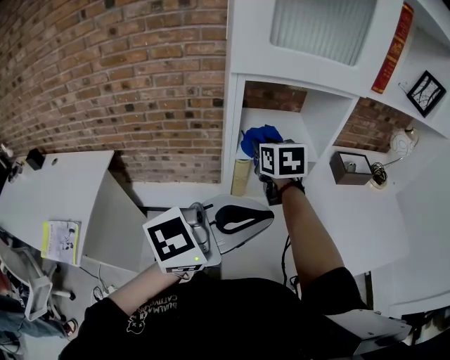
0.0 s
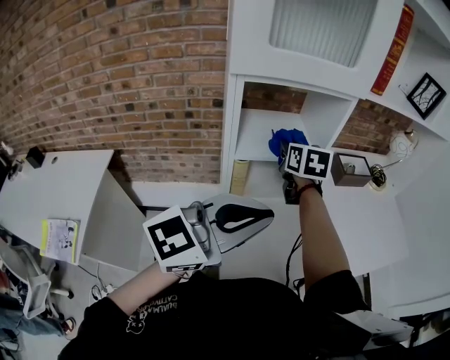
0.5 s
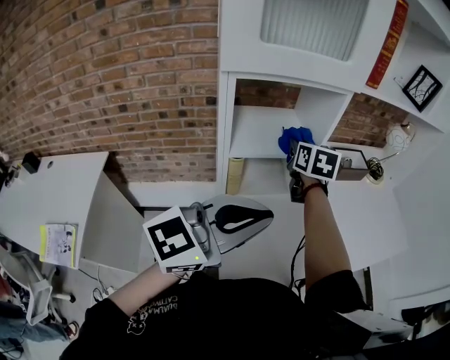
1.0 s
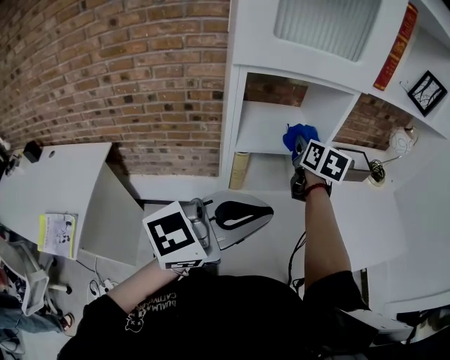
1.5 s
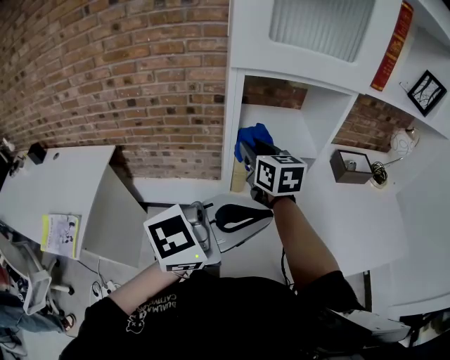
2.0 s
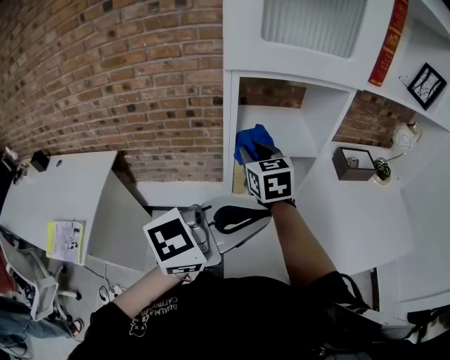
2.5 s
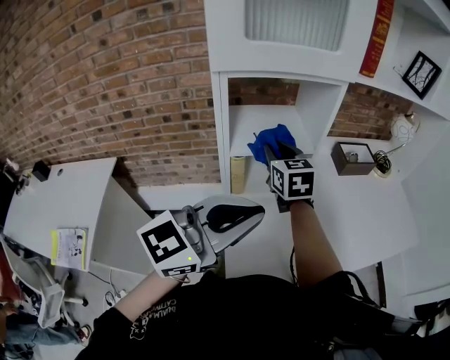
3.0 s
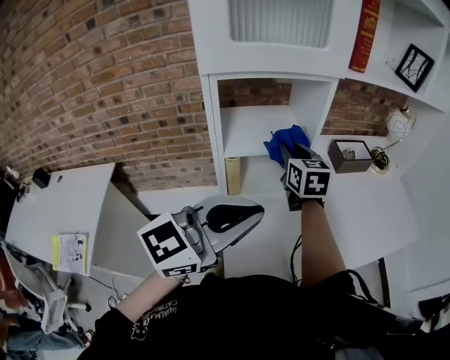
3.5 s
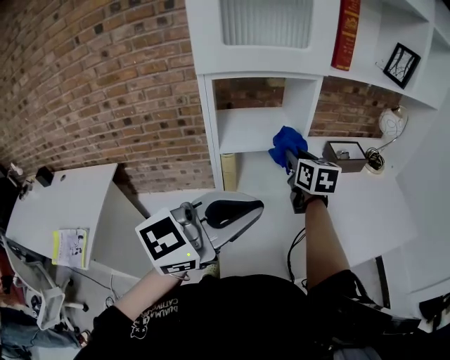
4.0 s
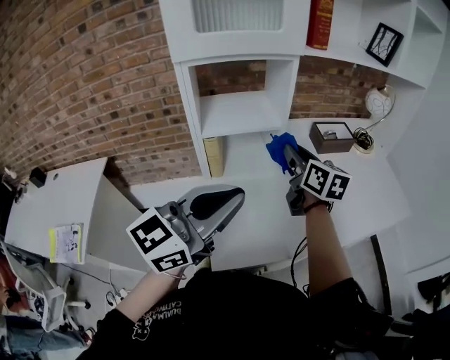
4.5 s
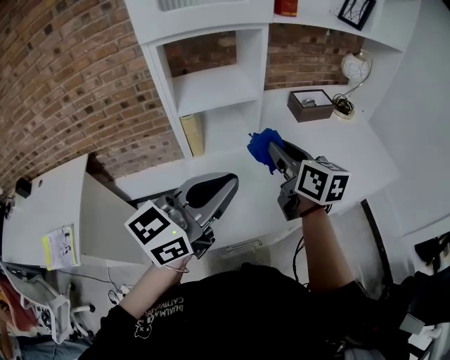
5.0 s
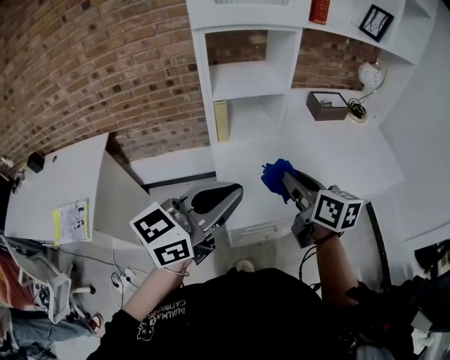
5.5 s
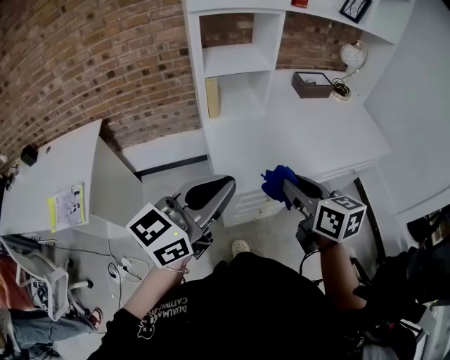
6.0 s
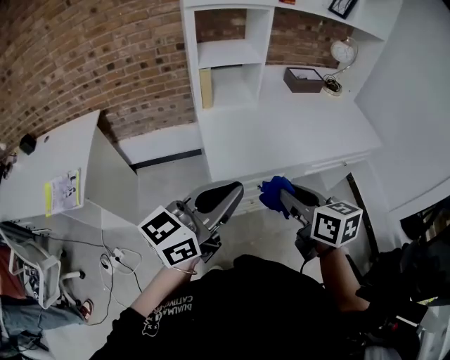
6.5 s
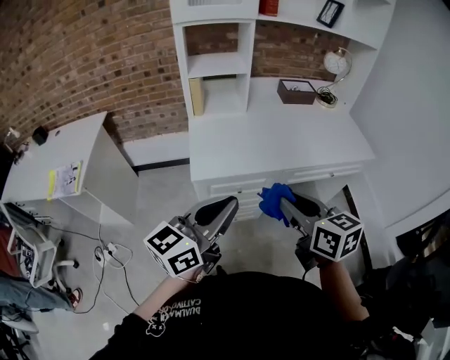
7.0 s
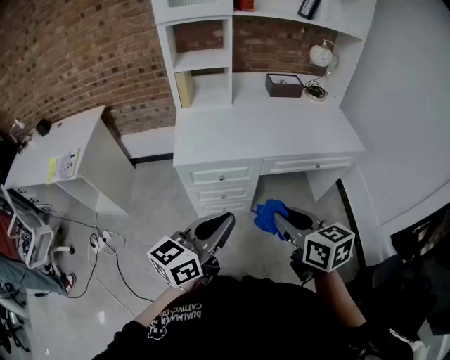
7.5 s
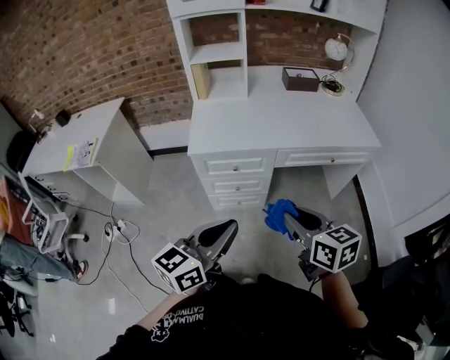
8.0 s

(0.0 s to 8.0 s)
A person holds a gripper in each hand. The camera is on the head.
0.0 s - 2.0 s: The right gripper moves roughly 10 cm to the right and comes back.
2.0 s - 4.0 s: The right gripper travels to the right by approximately 20 cm.
4.0 s - 6.0 s: The right gripper heads backward, covering approximately 40 cm. Meanwhile the left gripper travels backward by approximately 20 cm, and rotates about 20 degrees.
6.0 s - 8.0 s: The left gripper moves to the right, backward and downward, about 40 cm. The right gripper travels to the right and backward by some 35 cm.

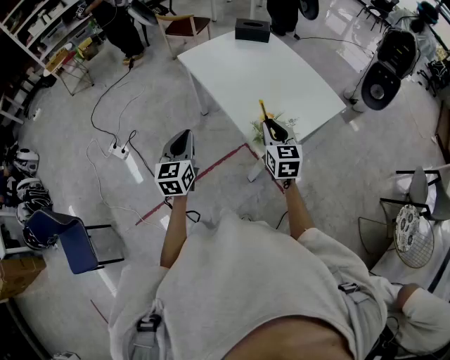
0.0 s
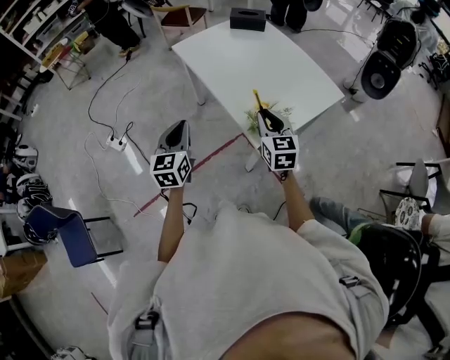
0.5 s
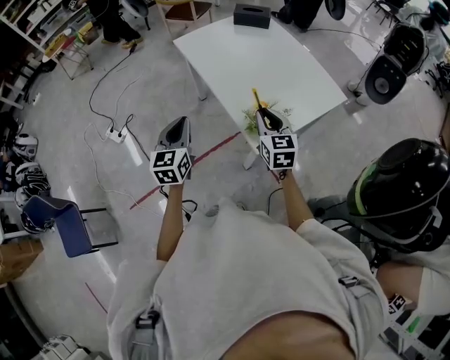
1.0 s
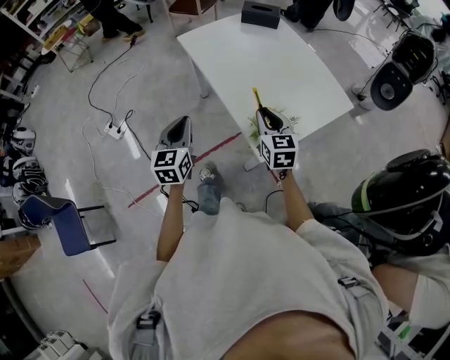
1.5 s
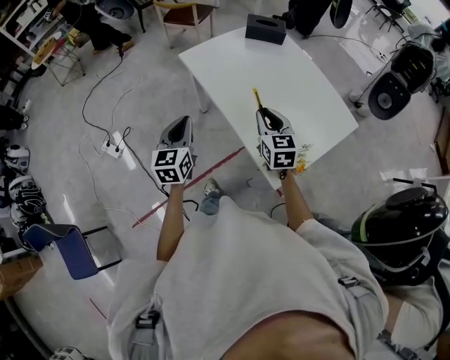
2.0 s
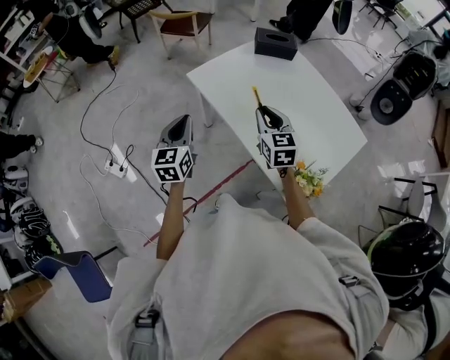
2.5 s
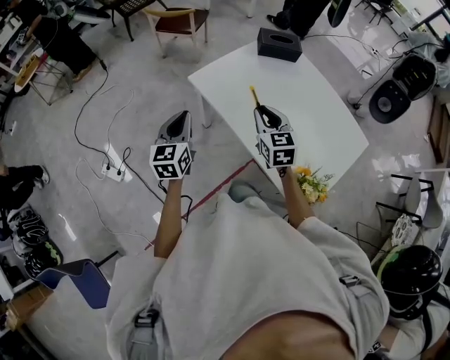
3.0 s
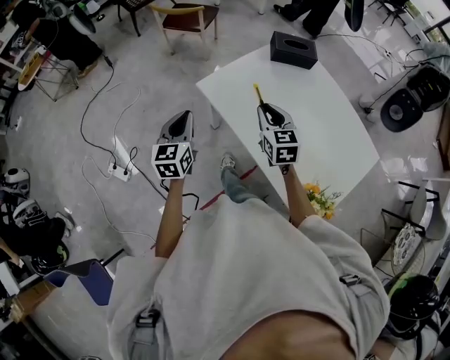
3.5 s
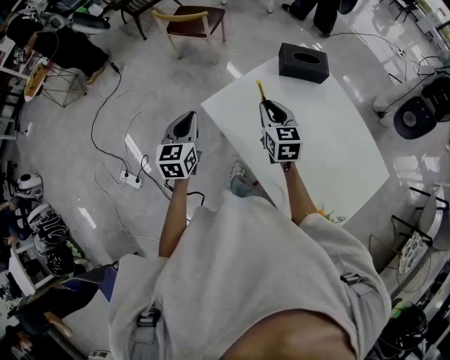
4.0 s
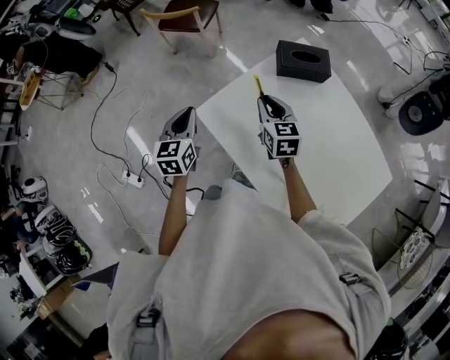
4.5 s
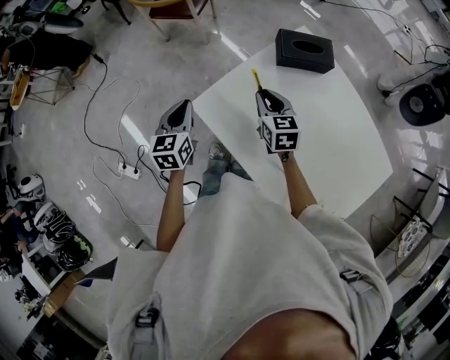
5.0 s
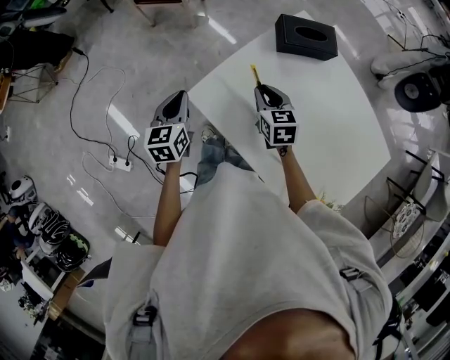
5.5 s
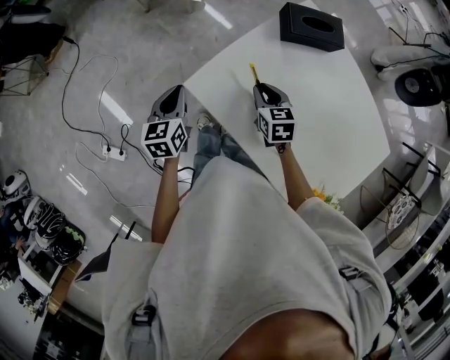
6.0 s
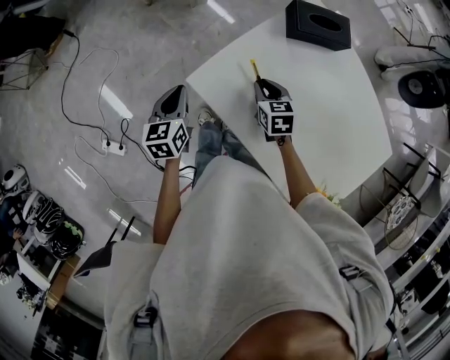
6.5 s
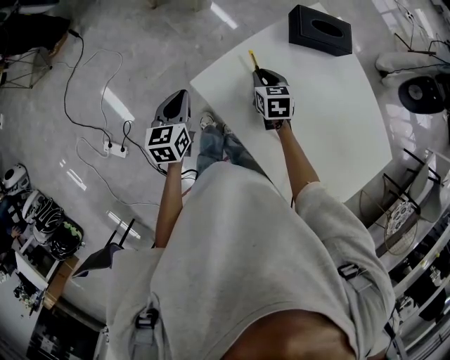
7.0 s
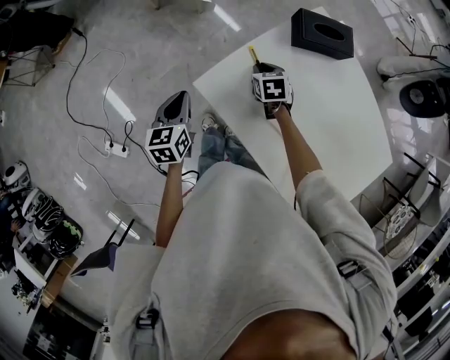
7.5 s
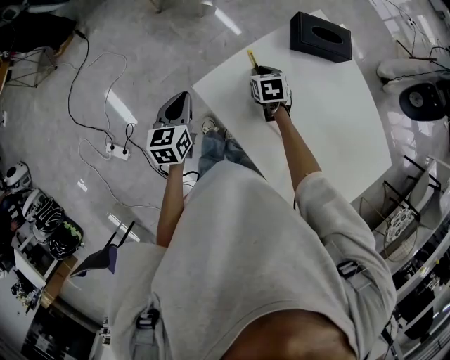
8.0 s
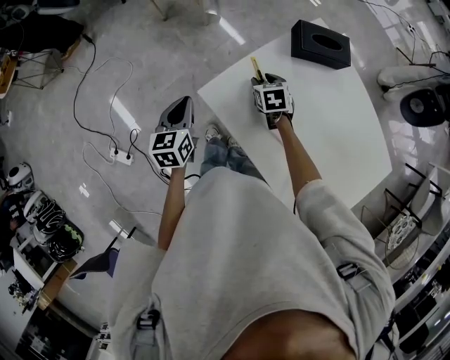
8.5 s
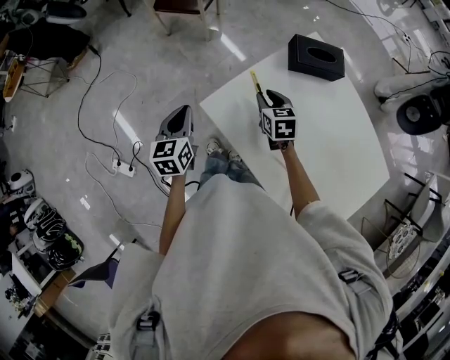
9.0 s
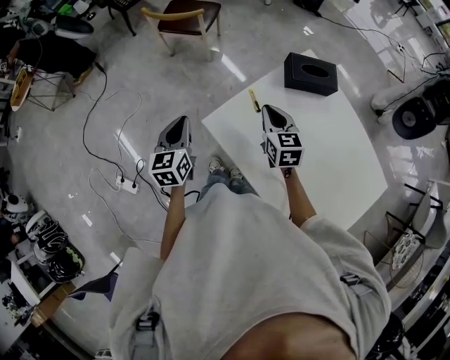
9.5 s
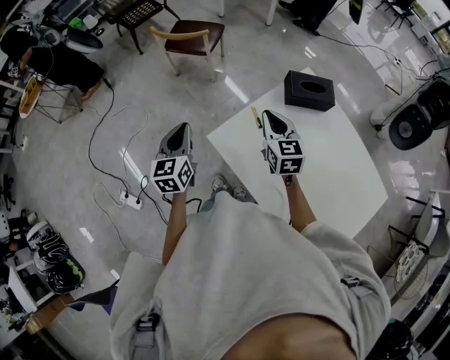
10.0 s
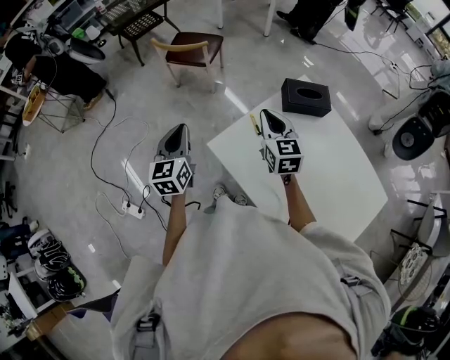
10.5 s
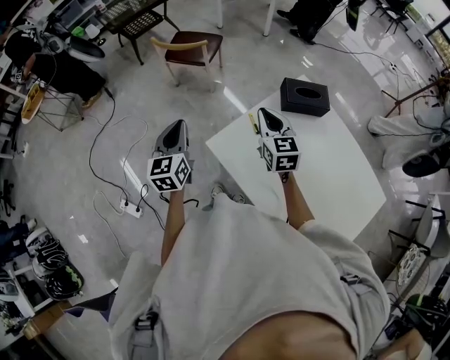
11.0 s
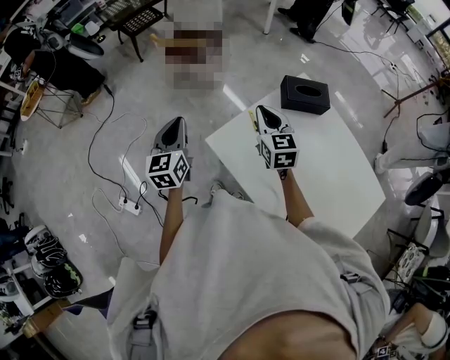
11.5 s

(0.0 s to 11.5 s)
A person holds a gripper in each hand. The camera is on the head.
0.0 s - 2.0 s: Both grippers travel together forward, roughly 15 cm.
2.0 s - 4.0 s: Both grippers travel together forward, roughly 30 cm.
4.0 s - 6.0 s: The left gripper is displaced downward and forward by about 10 cm; the right gripper is displaced downward by about 15 cm, and turns by roughly 20 degrees.
6.0 s - 7.5 s: The right gripper is displaced forward and downward by approximately 10 cm.
7.5 s - 9.5 s: The right gripper travels upward by roughly 15 cm, changes its angle by some 30 degrees, and opens, then closes once more; the left gripper is displaced upward by approximately 5 cm.
9.5 s - 11.5 s: Both grippers move upward, approximately 10 cm.

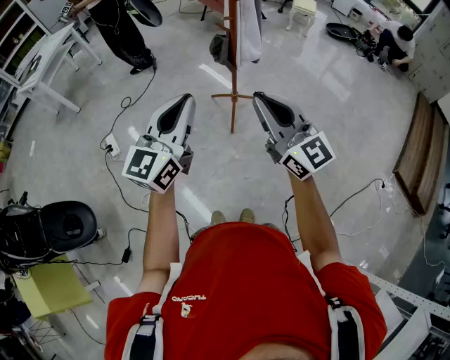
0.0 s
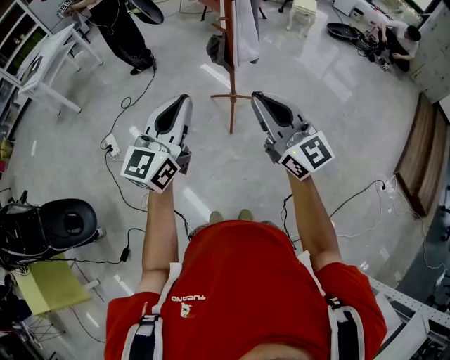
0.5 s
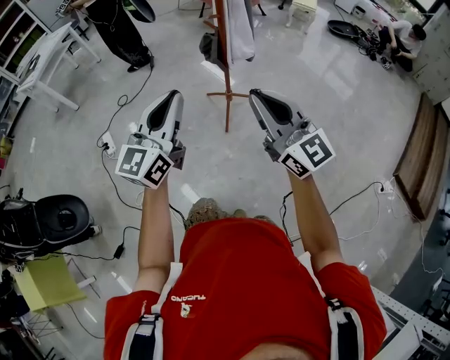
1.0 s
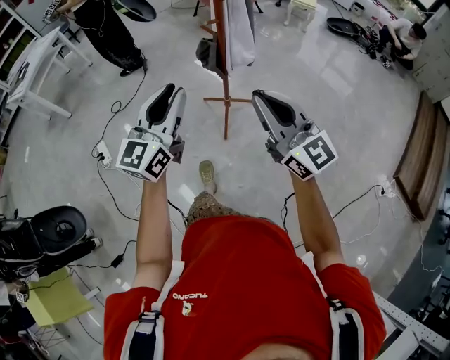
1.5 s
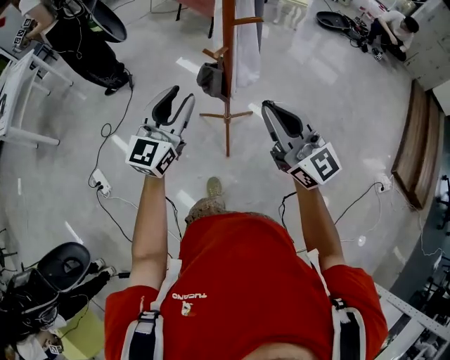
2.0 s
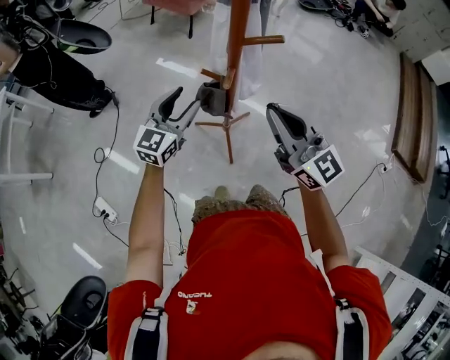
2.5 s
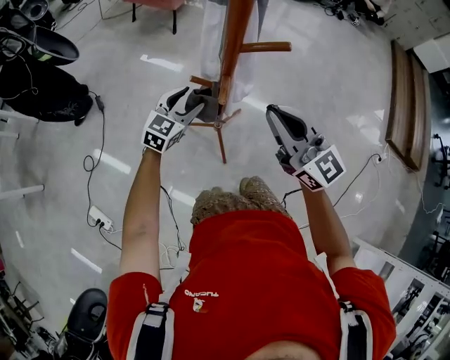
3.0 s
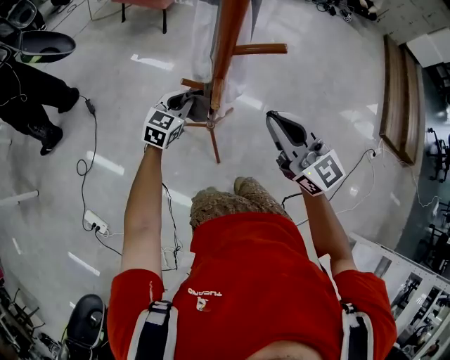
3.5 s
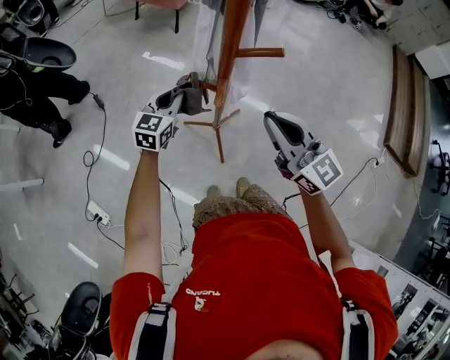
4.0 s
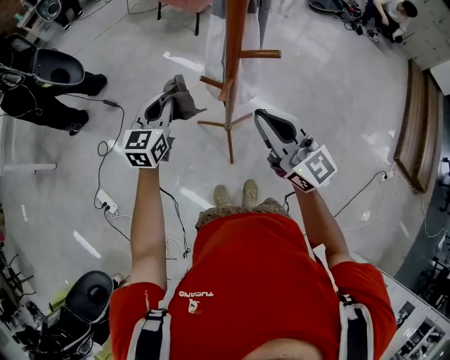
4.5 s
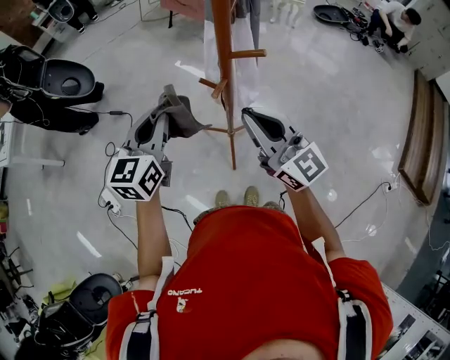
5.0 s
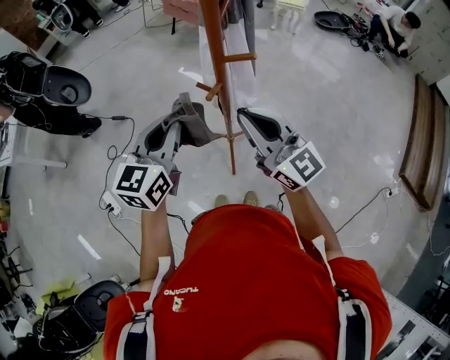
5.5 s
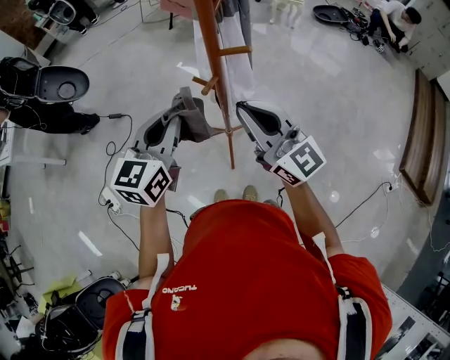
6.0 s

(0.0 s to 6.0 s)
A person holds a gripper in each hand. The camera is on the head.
0.0 s - 2.0 s: The grippers both shift forward by approximately 30 cm. The left gripper opens its fingers.
2.0 s - 4.0 s: The left gripper shifts roughly 30 cm forward and downward, turns by roughly 20 degrees, and closes. Meanwhile the right gripper travels forward and downward by approximately 15 cm.
4.0 s - 6.0 s: The right gripper goes about 5 cm upward. Meanwhile the left gripper goes some 25 cm upward and backward.

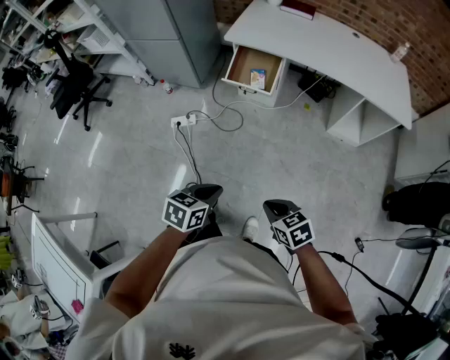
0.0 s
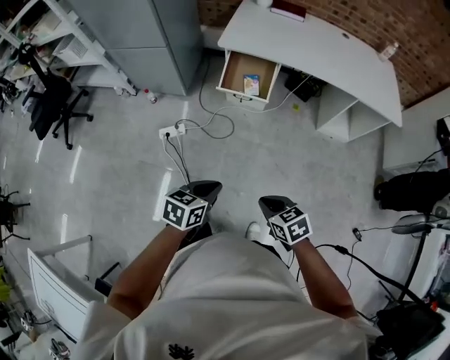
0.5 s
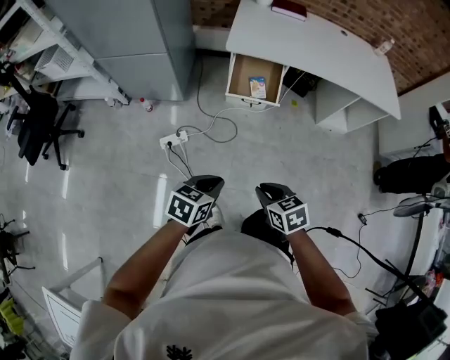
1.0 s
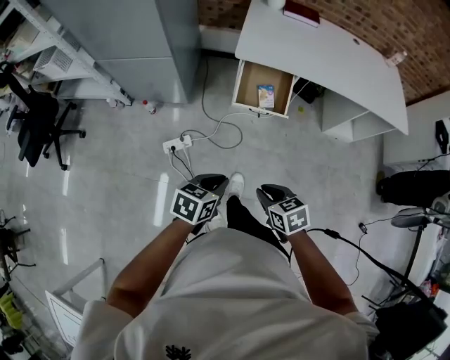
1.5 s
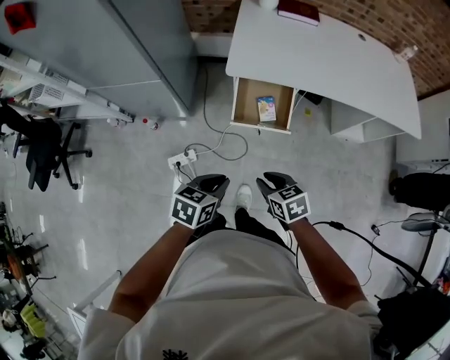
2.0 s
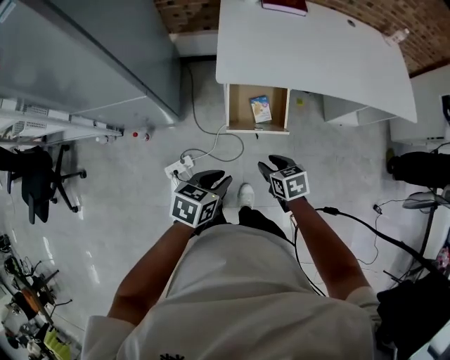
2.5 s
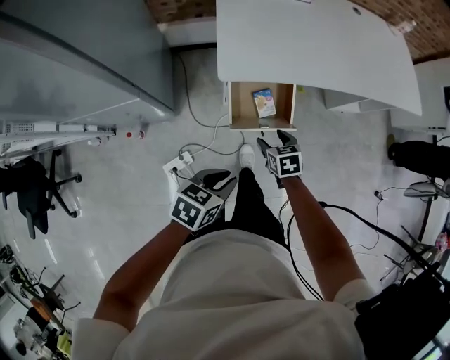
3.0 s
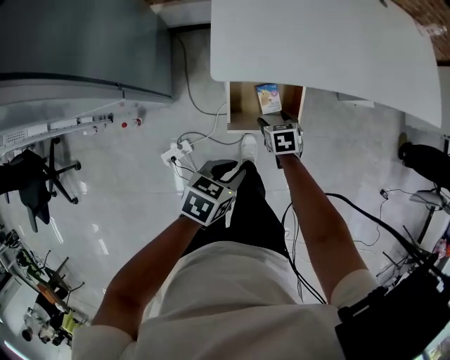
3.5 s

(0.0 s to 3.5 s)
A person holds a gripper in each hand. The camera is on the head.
0.0 s - 2.0 s: The pair of grippers is taken forward and to the left, roughly 50 cm.
2.0 s - 3.5 s: The right gripper ends up about 40 cm from where it was, rotates about 30 degrees, and opens; the left gripper changes place by about 30 cm.
